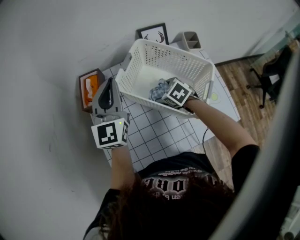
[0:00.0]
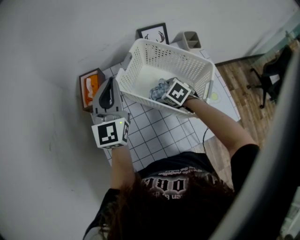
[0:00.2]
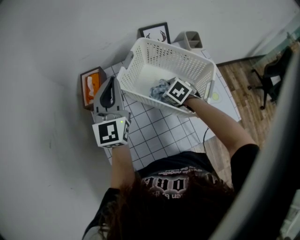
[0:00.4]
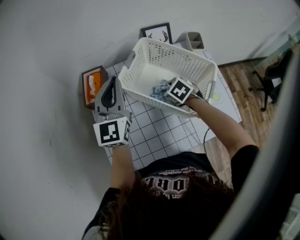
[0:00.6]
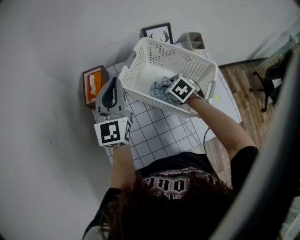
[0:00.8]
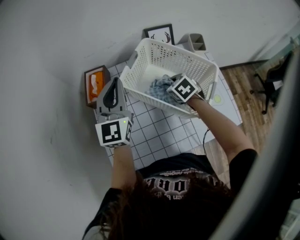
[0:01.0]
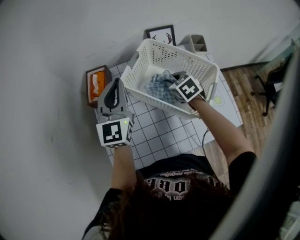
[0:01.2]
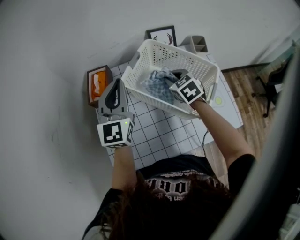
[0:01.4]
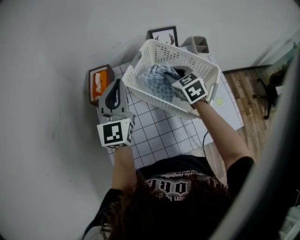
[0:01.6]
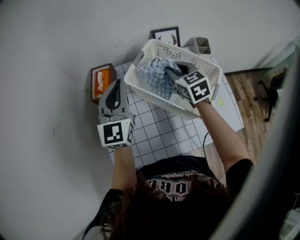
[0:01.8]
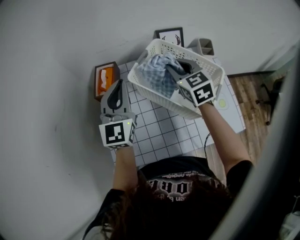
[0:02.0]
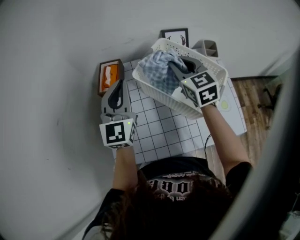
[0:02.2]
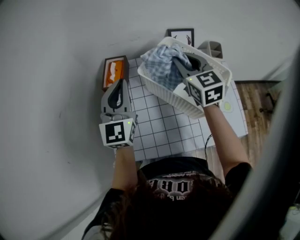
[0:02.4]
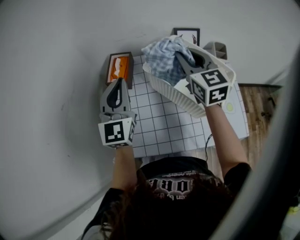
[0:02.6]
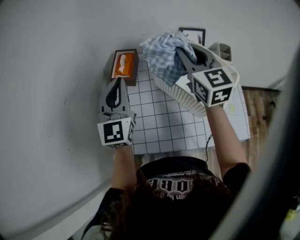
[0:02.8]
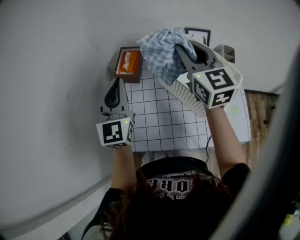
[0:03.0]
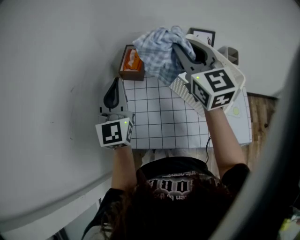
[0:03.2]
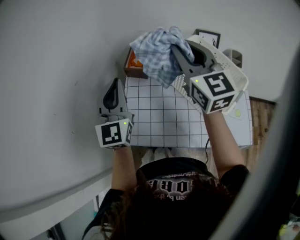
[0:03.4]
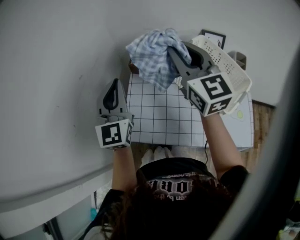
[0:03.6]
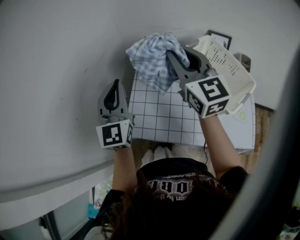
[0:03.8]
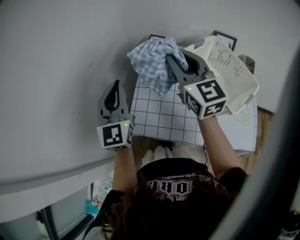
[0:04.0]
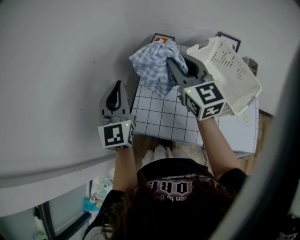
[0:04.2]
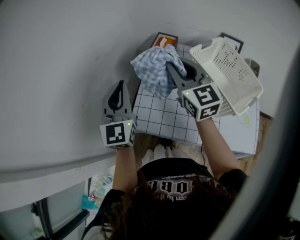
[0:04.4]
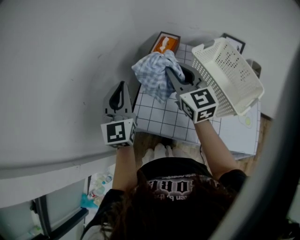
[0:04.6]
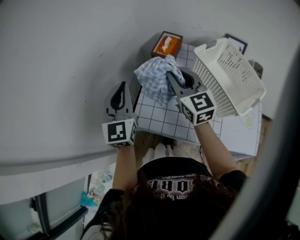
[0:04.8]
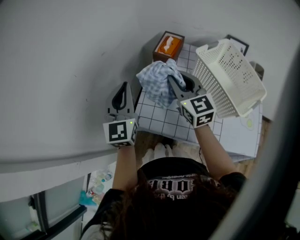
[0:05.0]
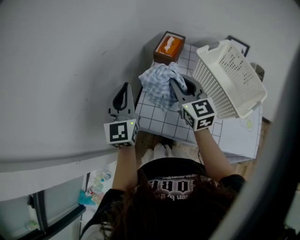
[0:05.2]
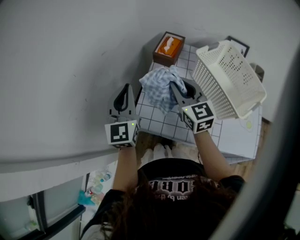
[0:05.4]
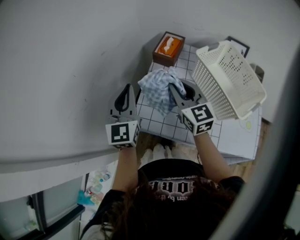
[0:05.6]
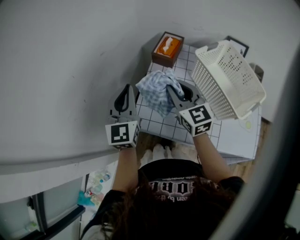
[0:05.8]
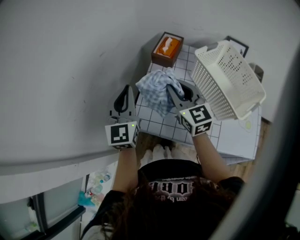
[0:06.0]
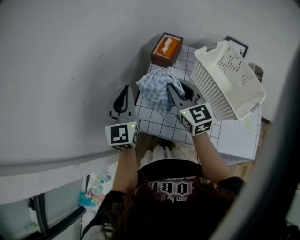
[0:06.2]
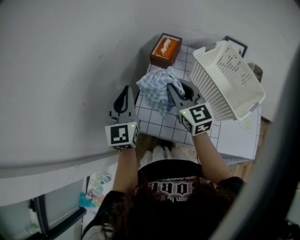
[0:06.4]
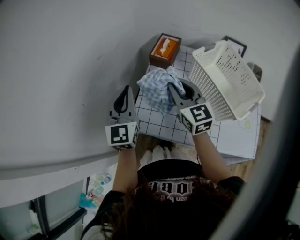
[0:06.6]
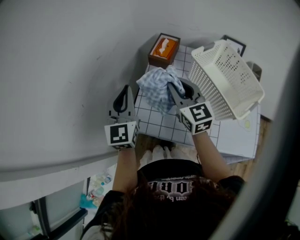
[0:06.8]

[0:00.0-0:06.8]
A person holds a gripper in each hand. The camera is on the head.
0:00.0 to 0:01.4: The right gripper shifts roughly 10 cm upward, turns by approximately 20 degrees, and closes its fingers.
0:01.4 to 0:02.8: The right gripper travels upward by approximately 20 cm, and tilts its fingers approximately 40 degrees upward, while the left gripper travels to the left and backward by about 10 cm.
0:02.8 to 0:04.0: The right gripper travels to the left by about 15 cm; the left gripper shifts roughly 15 cm to the left and backward.
0:04.0 to 0:05.4: The right gripper shifts some 15 cm downward. The left gripper is displaced downward by roughly 5 cm.
0:05.4 to 0:06.8: The grippers stay close to where they were, moving slightly.

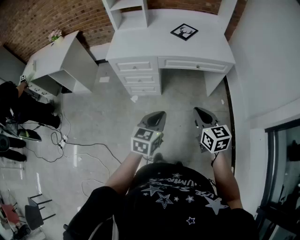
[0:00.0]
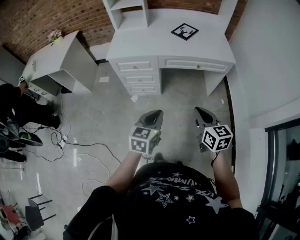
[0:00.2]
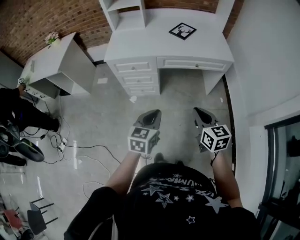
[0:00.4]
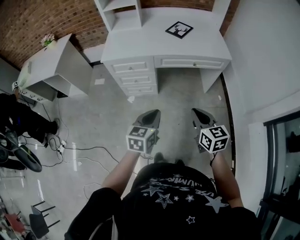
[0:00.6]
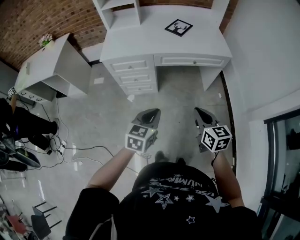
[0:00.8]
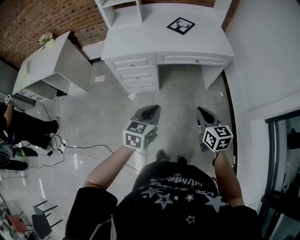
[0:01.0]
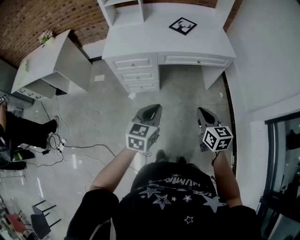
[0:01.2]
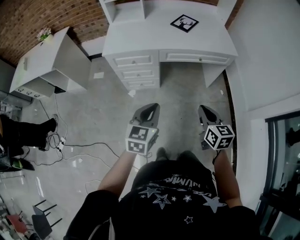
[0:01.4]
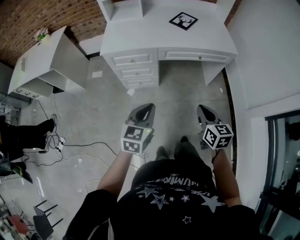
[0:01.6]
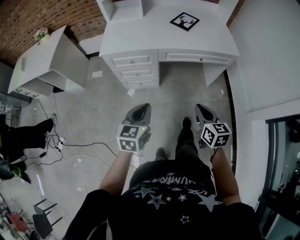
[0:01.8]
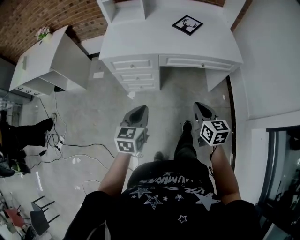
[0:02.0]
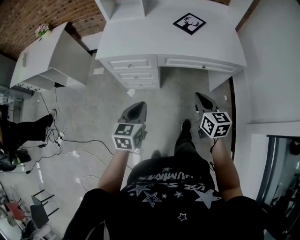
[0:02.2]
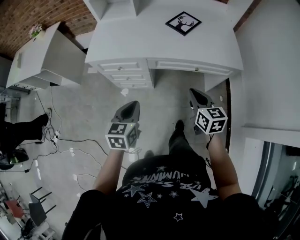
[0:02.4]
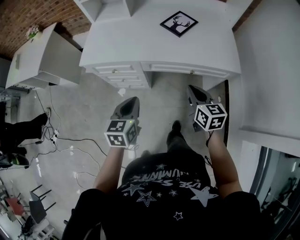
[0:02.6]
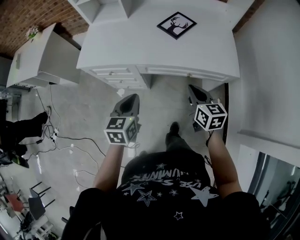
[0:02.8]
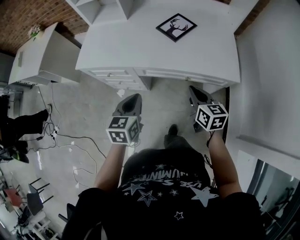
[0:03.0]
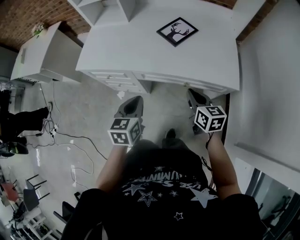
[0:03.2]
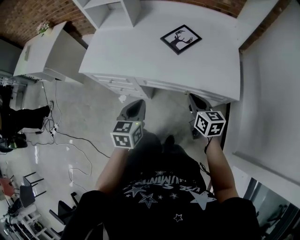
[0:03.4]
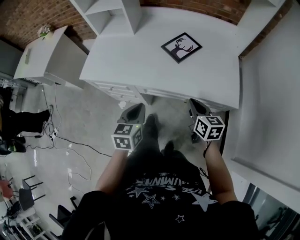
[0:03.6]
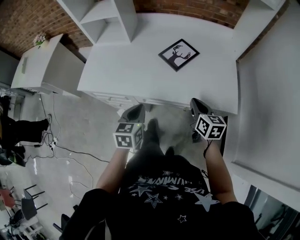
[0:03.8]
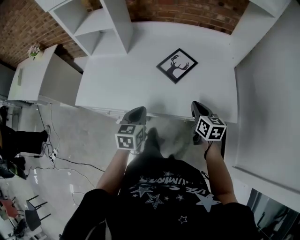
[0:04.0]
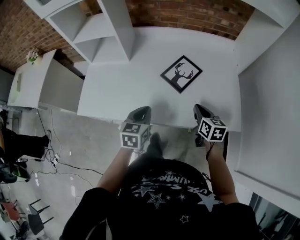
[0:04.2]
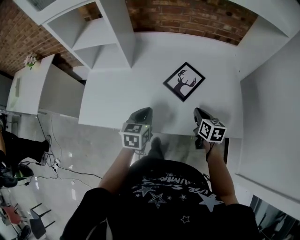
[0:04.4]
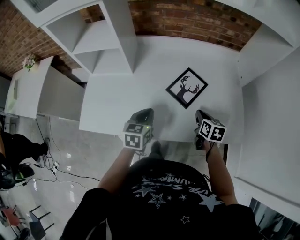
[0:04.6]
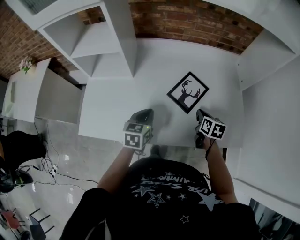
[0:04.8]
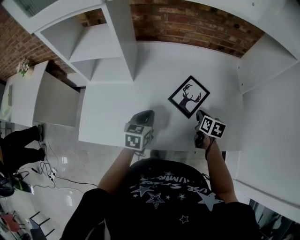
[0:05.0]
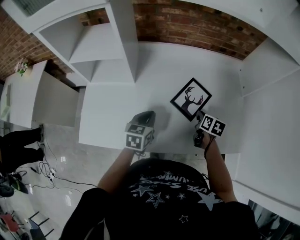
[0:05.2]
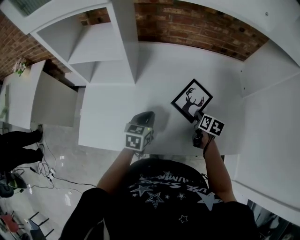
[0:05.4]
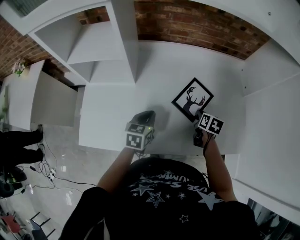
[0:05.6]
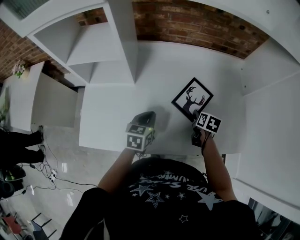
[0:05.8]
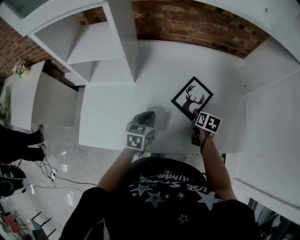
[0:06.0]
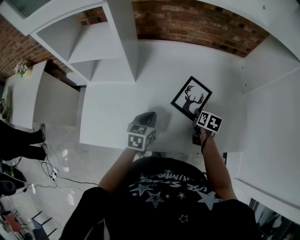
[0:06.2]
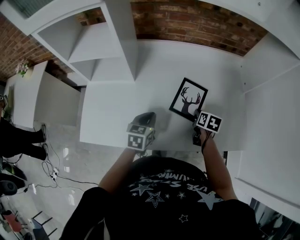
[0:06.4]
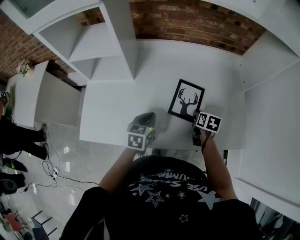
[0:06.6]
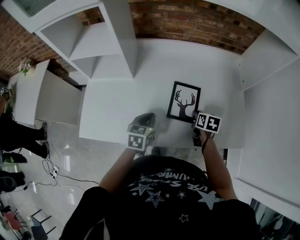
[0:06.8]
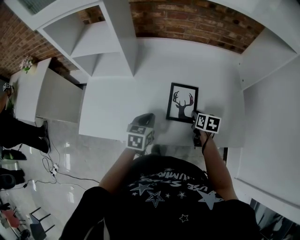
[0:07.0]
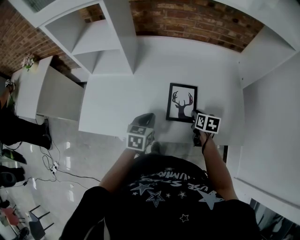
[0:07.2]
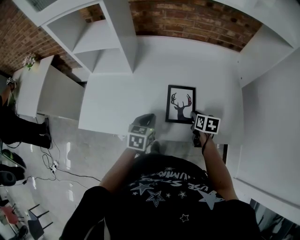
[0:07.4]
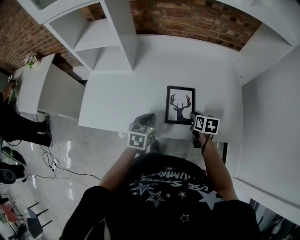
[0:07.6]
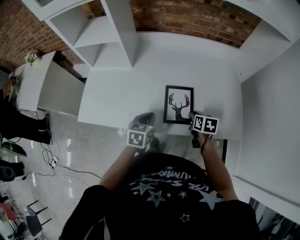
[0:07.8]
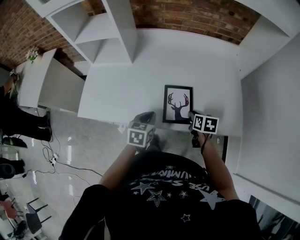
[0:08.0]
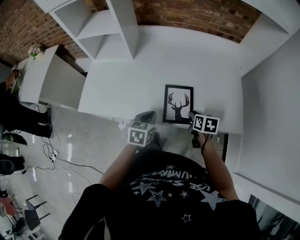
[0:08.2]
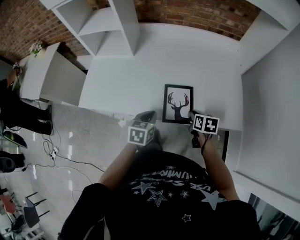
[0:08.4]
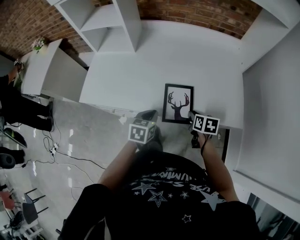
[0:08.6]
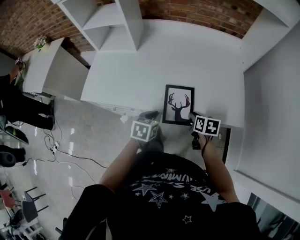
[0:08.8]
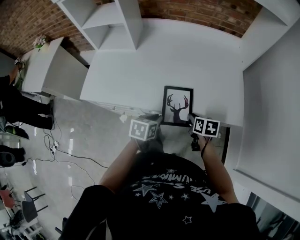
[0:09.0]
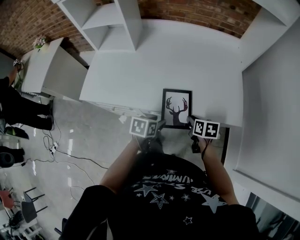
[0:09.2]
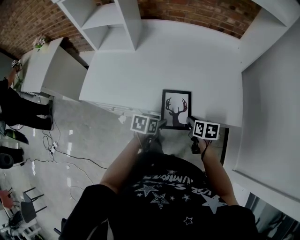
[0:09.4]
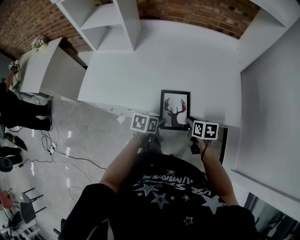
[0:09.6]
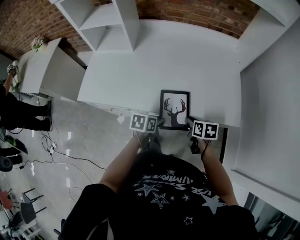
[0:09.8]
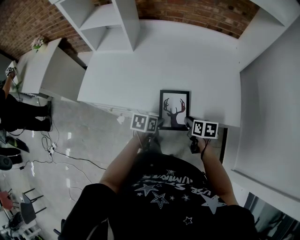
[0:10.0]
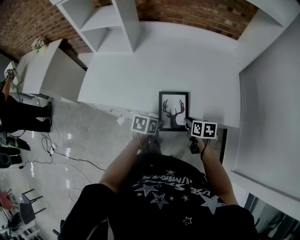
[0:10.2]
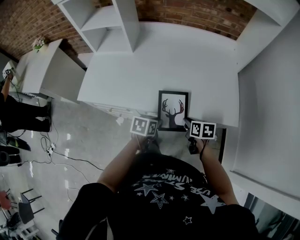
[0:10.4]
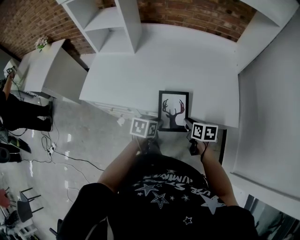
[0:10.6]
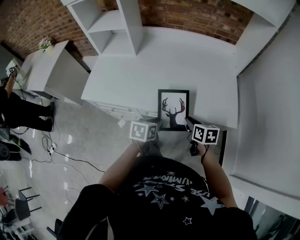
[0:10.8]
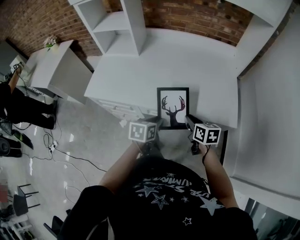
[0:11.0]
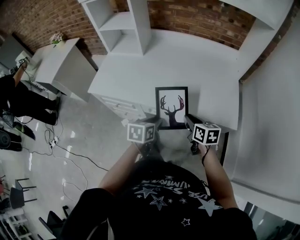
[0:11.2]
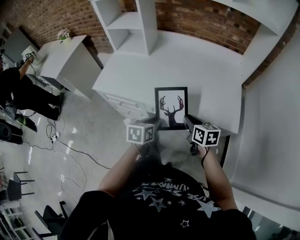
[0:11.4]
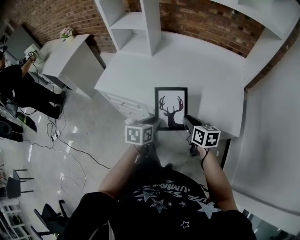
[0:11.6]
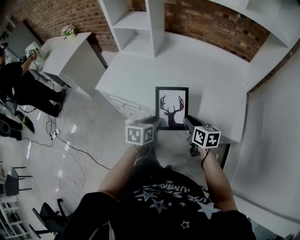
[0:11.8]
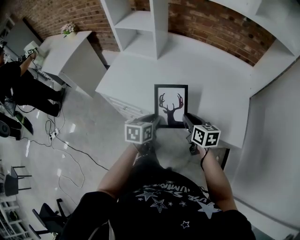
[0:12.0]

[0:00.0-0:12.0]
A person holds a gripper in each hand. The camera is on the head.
0:00.0 to 0:01.6: The left gripper shifts some 10 cm to the left, while the right gripper moves approximately 5 cm.
0:01.6 to 0:03.0: The two grippers go roughly 30 cm forward and to the right. The left gripper swivels roughly 20 degrees.
0:03.0 to 0:04.4: The two grippers go about 25 cm forward.
0:04.4 to 0:06.0: The left gripper moves forward, some 10 cm, while the right gripper heads forward and downward, covering roughly 10 cm, turns by some 20 degrees, and opens up.
0:06.0 to 0:07.6: The right gripper travels backward by about 10 cm. The left gripper moves backward and to the right, about 10 cm.
0:07.6 to 0:09.0: Both grippers travel together backward, about 15 cm.
0:09.0 to 0:10.4: The grippers move only a little.
0:10.4 to 0:12.0: Both grippers move upward and to the left, roughly 15 cm. The left gripper swivels about 30 degrees; the right gripper rotates approximately 30 degrees.

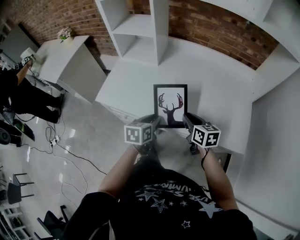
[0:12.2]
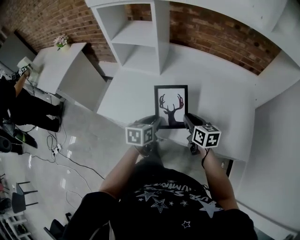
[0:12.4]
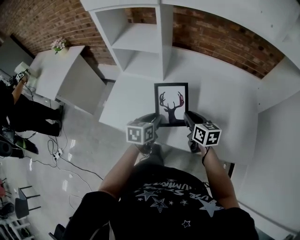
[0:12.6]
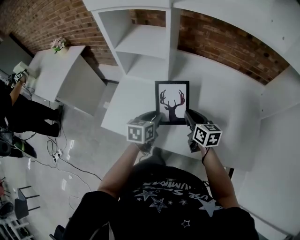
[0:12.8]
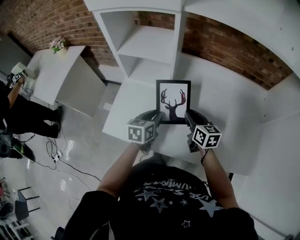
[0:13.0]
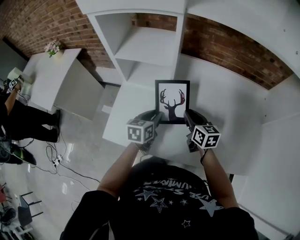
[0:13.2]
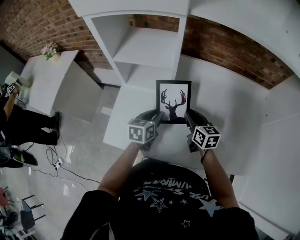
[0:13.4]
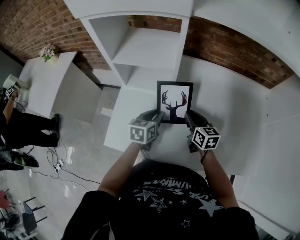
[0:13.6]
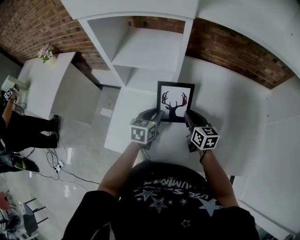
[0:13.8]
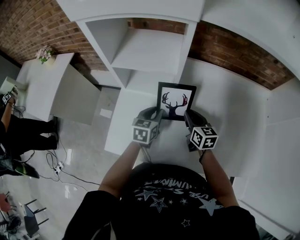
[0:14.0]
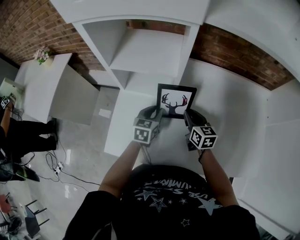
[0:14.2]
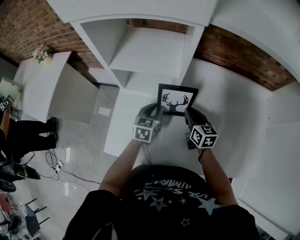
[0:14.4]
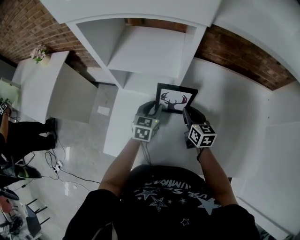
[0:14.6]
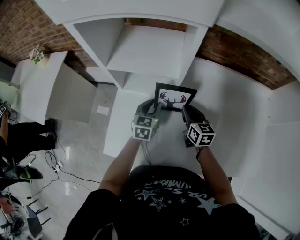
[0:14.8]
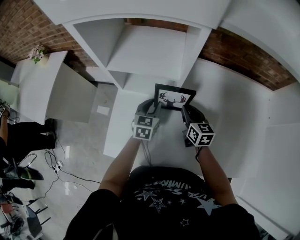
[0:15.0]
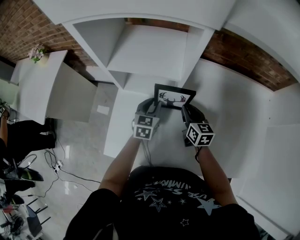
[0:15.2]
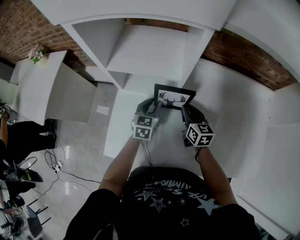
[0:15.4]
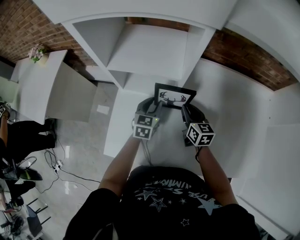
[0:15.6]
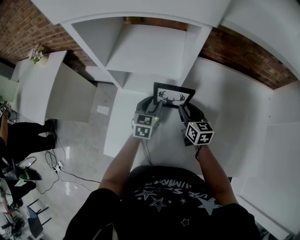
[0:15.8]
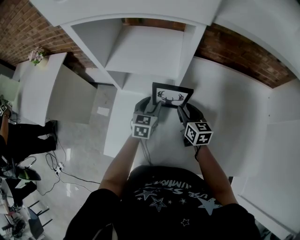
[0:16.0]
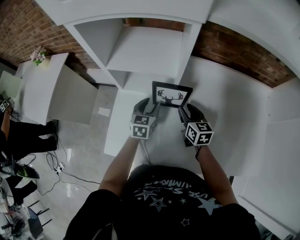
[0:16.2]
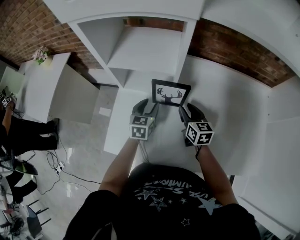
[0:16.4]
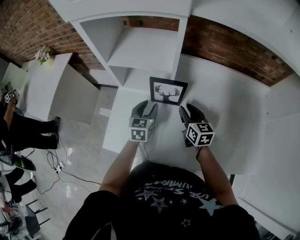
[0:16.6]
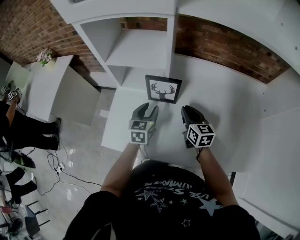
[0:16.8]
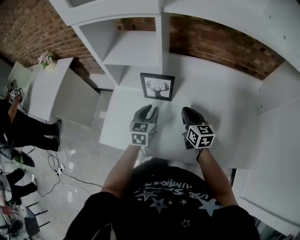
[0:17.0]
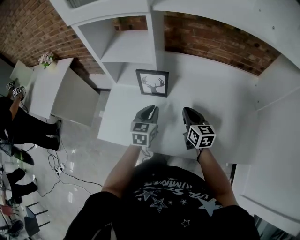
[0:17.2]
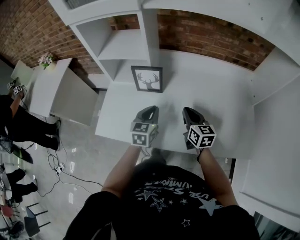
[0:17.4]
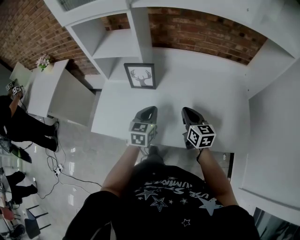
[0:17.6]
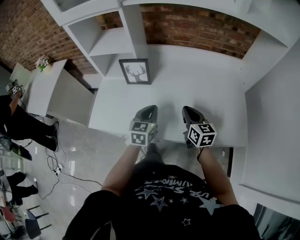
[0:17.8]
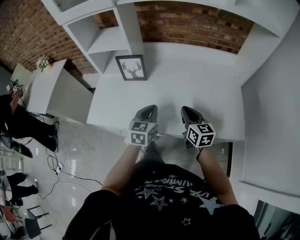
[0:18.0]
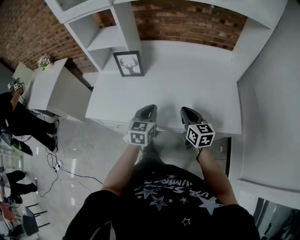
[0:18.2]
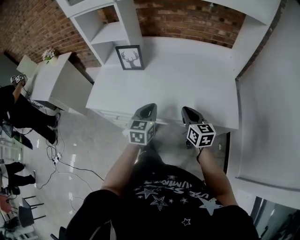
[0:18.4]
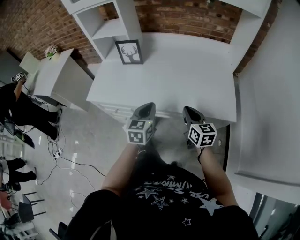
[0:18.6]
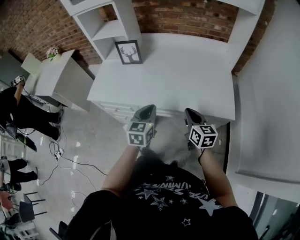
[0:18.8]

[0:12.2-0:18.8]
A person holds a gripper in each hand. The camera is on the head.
0:12.2 to 0:13.8: Both grippers travel together forward and to the left, approximately 30 cm.
0:13.8 to 0:15.4: The grippers both shift forward by approximately 5 cm.
0:15.4 to 0:17.2: The two grippers go some 15 cm backward, to the right and upward.
0:17.2 to 0:18.8: The two grippers go some 35 cm backward and to the right.
